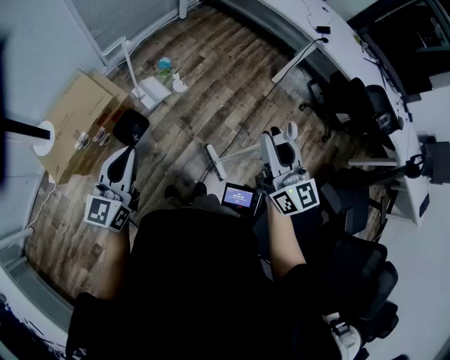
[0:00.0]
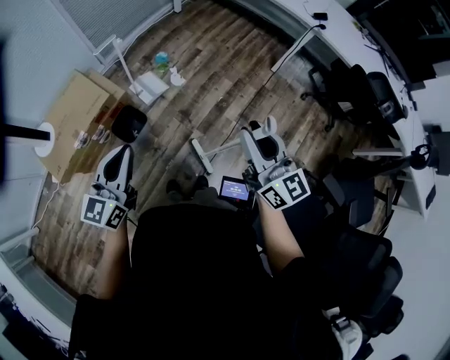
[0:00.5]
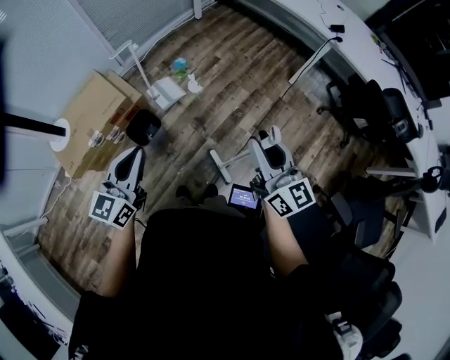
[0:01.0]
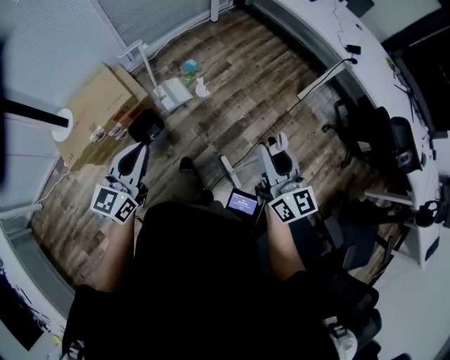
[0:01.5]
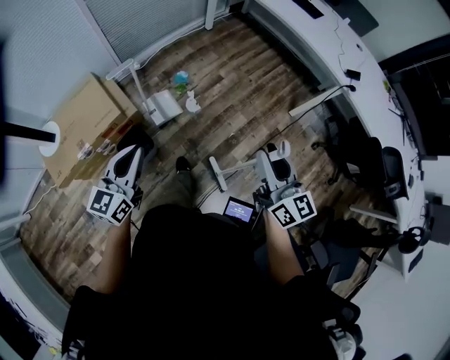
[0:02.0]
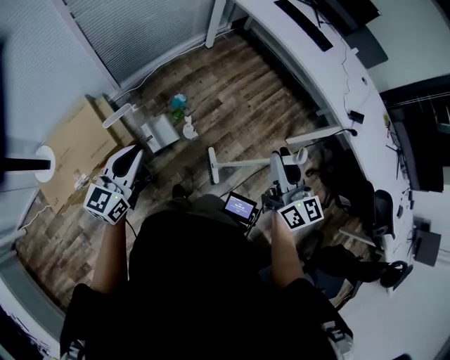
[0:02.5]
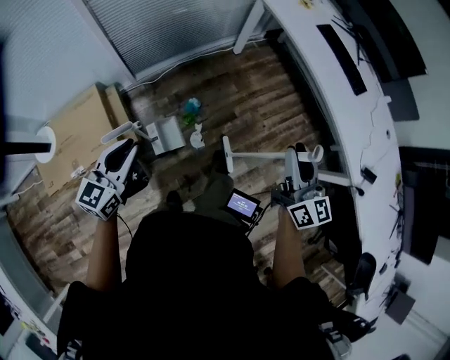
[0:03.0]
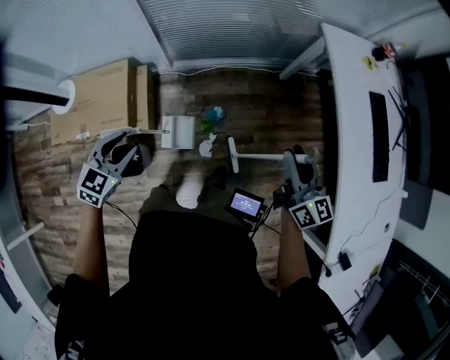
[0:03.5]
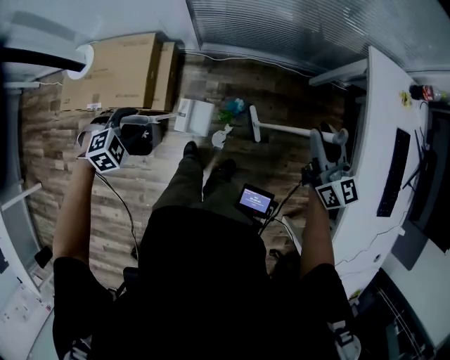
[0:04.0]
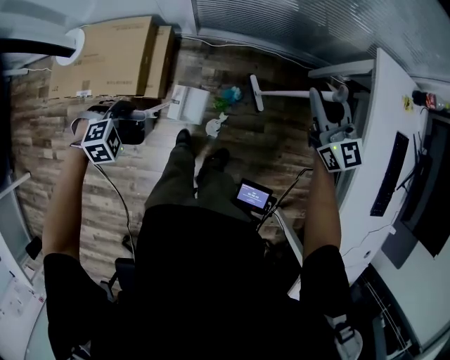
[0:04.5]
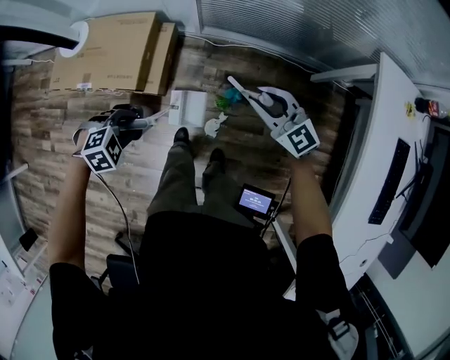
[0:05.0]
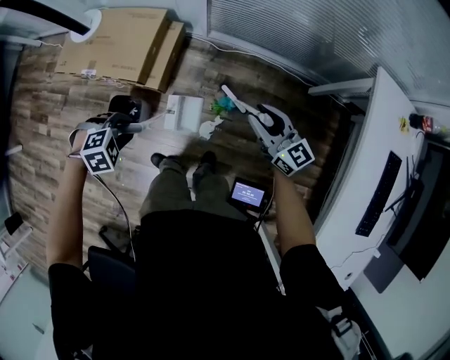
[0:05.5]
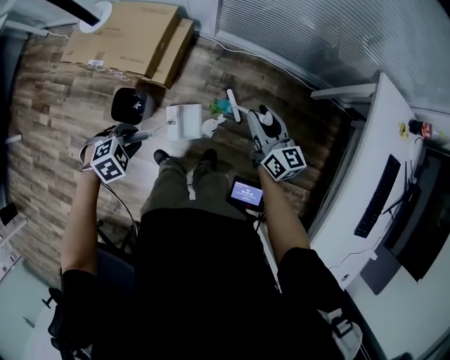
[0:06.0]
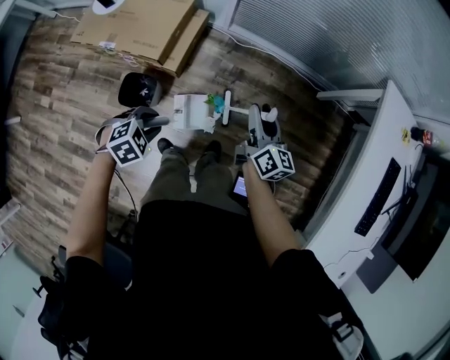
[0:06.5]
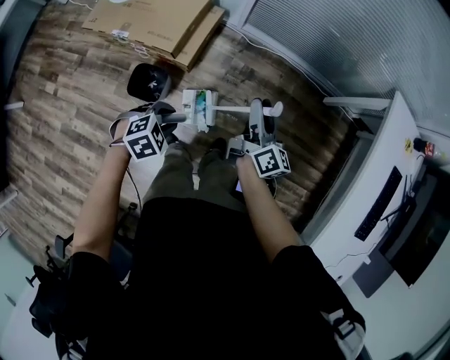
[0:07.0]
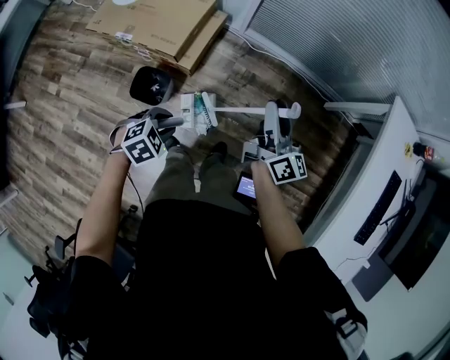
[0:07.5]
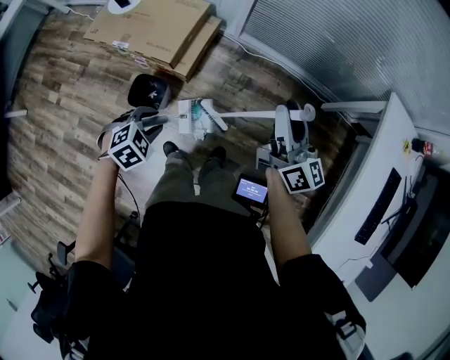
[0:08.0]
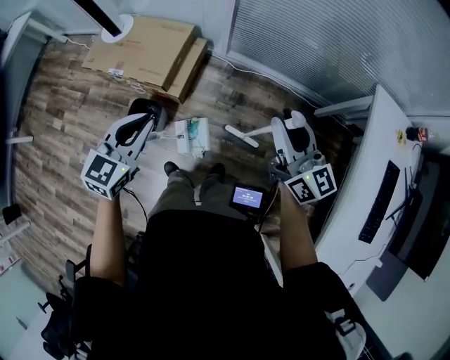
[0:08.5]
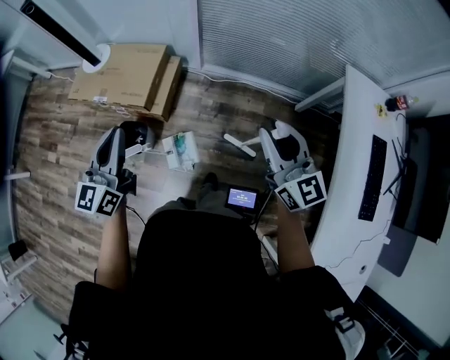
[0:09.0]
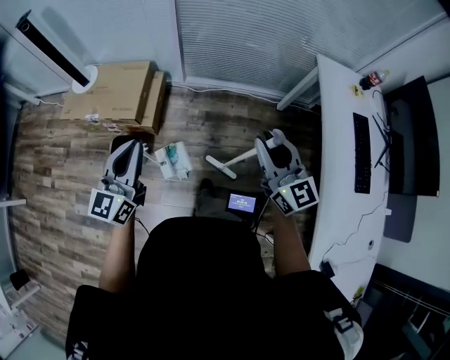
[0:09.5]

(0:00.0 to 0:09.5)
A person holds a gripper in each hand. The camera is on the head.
0:00.0 - 0:02.0: The two grippers go some 20 cm forward.
0:02.0 - 0:04.0: Both grippers are carried roughly 60 cm. The right gripper rotates about 50 degrees. Meanwhile the left gripper tips its fingers downward by some 60 degrees, and opens.
0:04.0 - 0:05.5: The left gripper changes place by about 10 cm, and closes its fingers. The right gripper shifts roughly 15 cm downward, and changes its angle by roughly 30 degrees.
0:05.5 - 0:07.5: The left gripper ends up some 10 cm from where it was, and rotates about 30 degrees, while the right gripper changes place by some 15 cm, and turns by approximately 40 degrees.
0:07.5 - 0:09.5: The right gripper shifts approximately 25 cm backward, upward and to the right, and twists some 40 degrees counterclockwise, seen from behind. The left gripper travels upward by some 30 cm, tips its fingers upward by some 70 degrees, and closes its fingers.

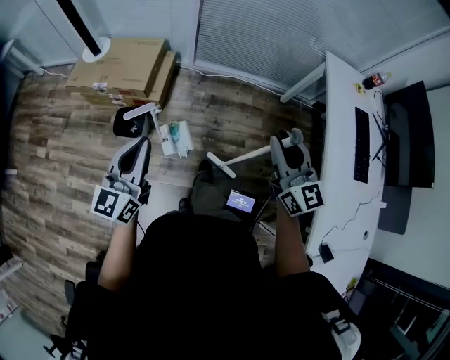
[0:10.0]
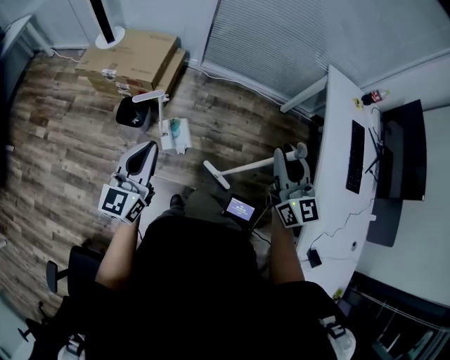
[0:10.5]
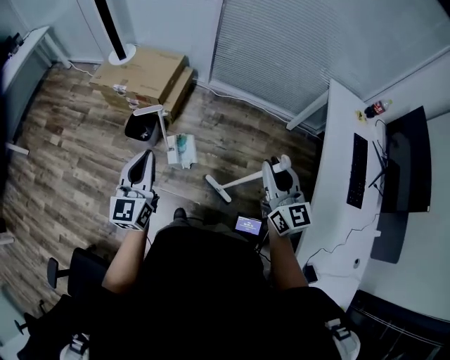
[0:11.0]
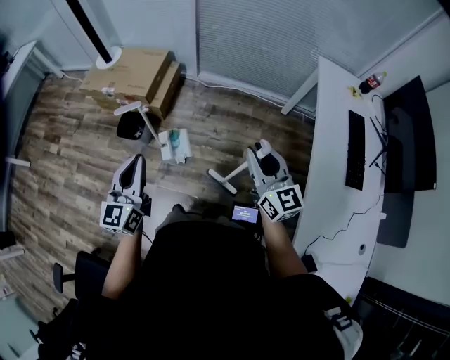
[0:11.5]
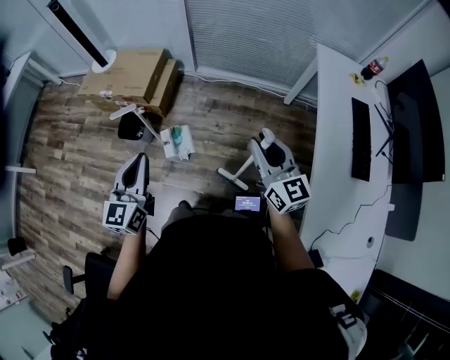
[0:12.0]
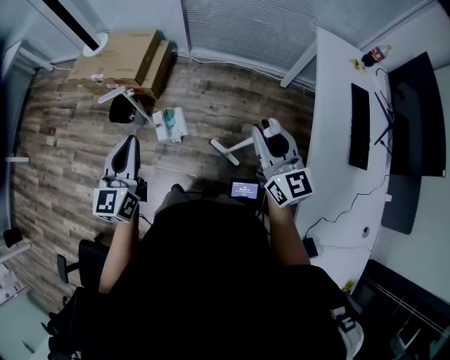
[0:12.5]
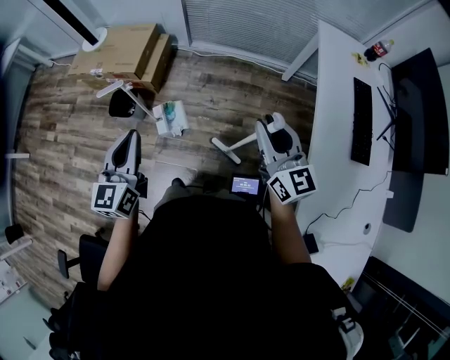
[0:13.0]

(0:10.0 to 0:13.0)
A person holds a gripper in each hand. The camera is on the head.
0:10.0 - 0:11.5: The right gripper travels to the right and backward by about 10 cm; the left gripper heads backward and to the right, covering about 15 cm.
0:11.5 - 0:13.0: Both grippers travel together to the right, about 5 cm.

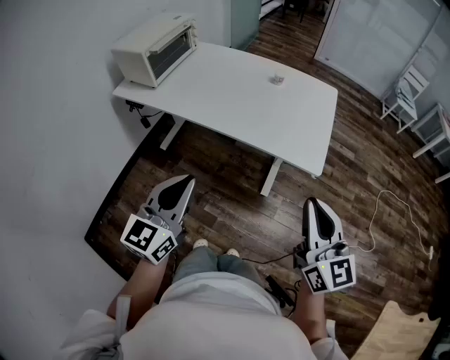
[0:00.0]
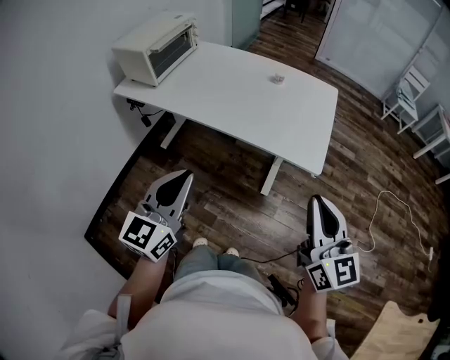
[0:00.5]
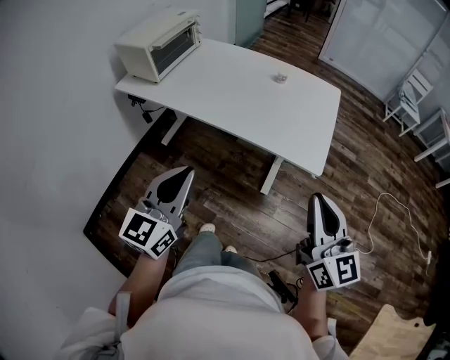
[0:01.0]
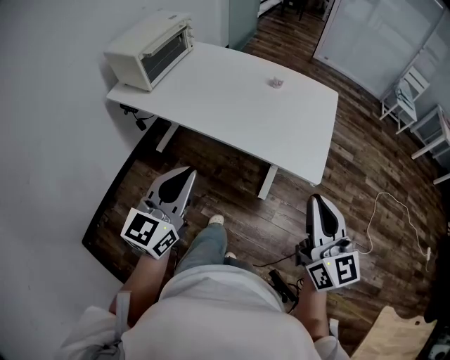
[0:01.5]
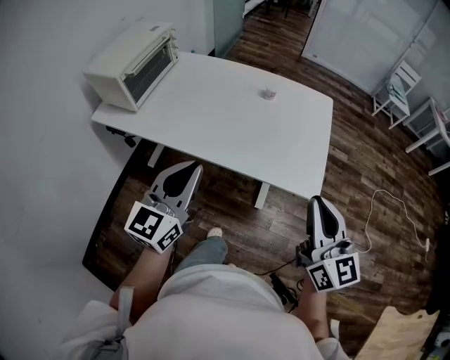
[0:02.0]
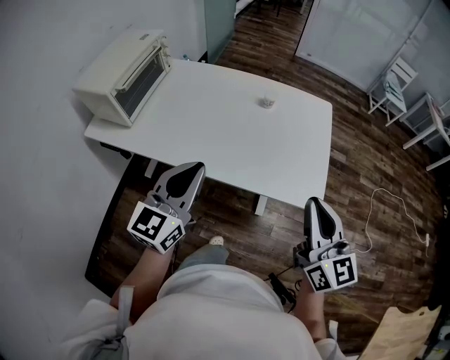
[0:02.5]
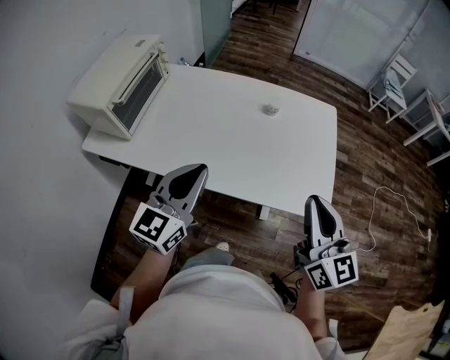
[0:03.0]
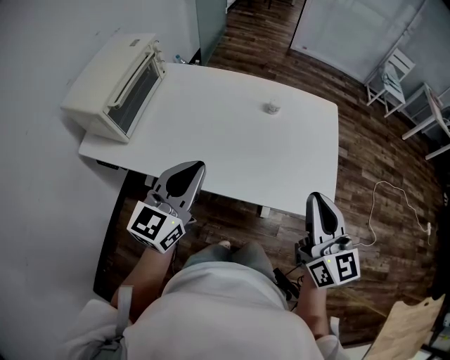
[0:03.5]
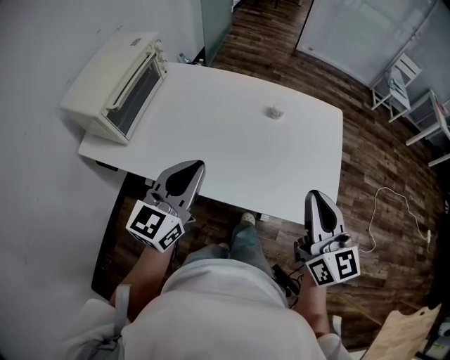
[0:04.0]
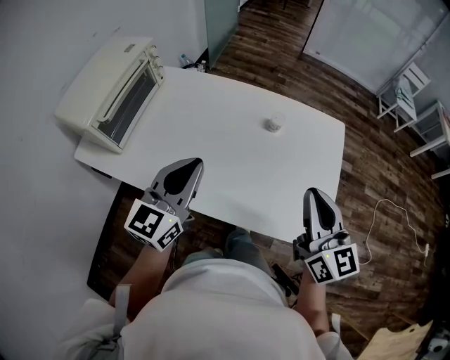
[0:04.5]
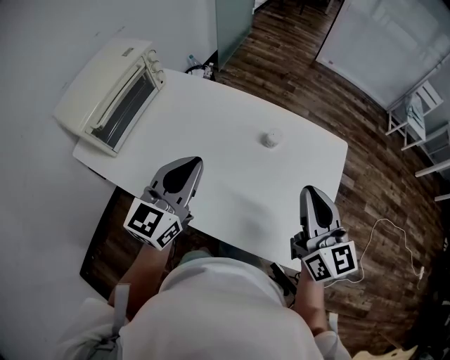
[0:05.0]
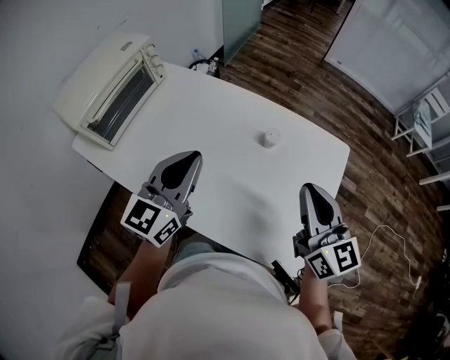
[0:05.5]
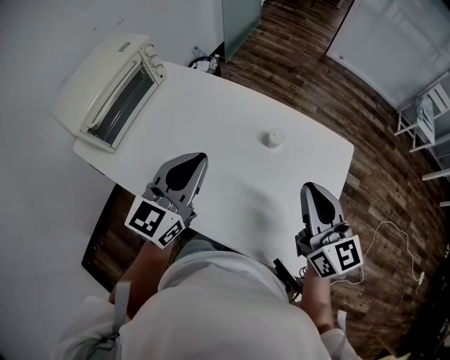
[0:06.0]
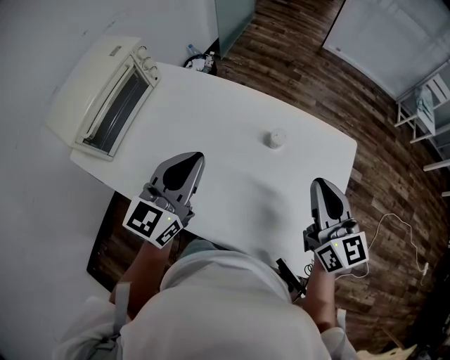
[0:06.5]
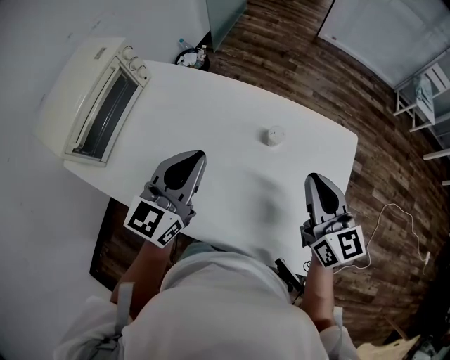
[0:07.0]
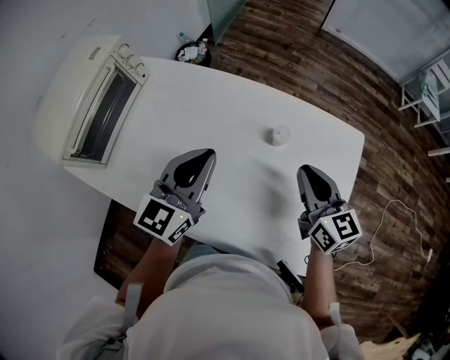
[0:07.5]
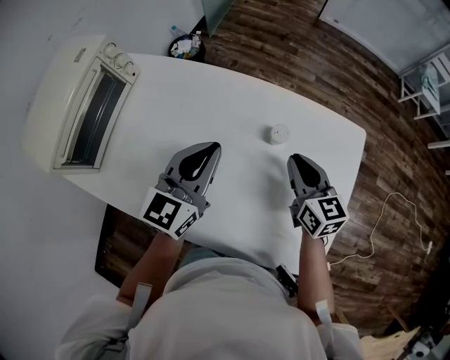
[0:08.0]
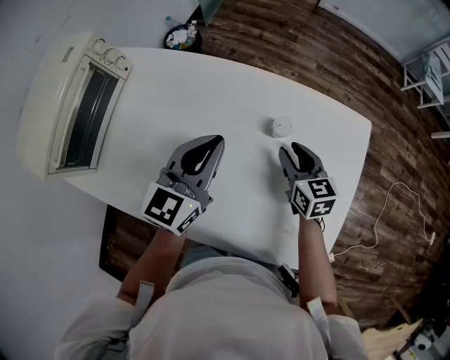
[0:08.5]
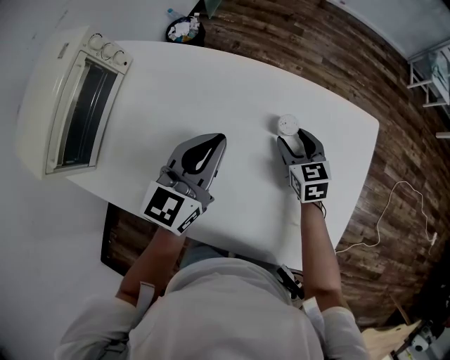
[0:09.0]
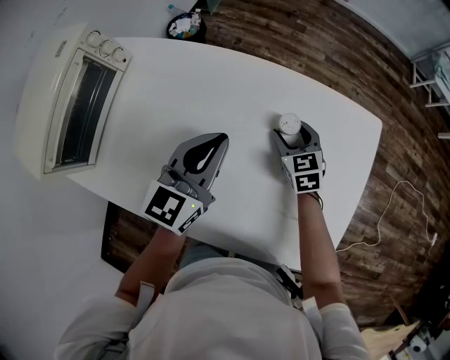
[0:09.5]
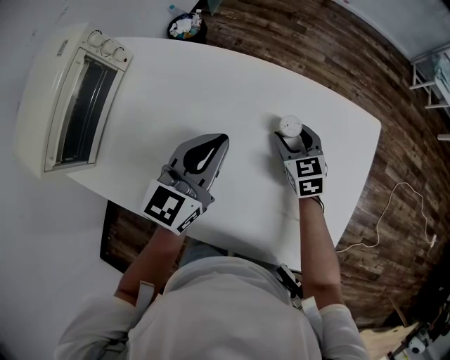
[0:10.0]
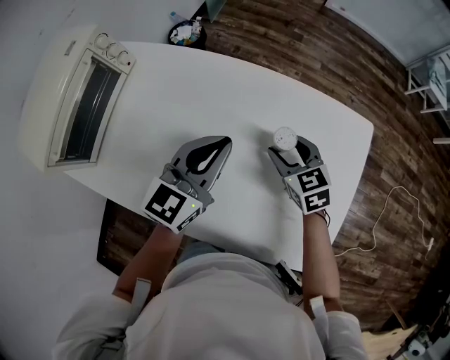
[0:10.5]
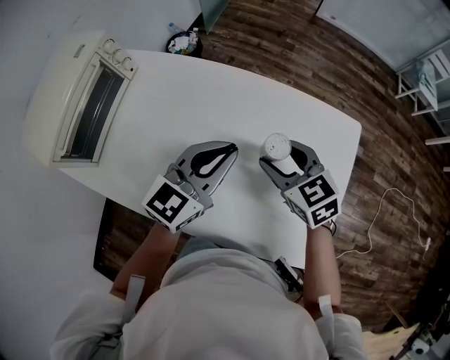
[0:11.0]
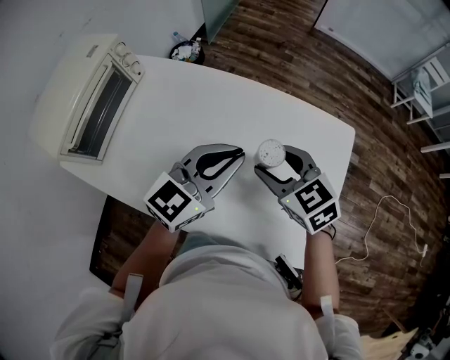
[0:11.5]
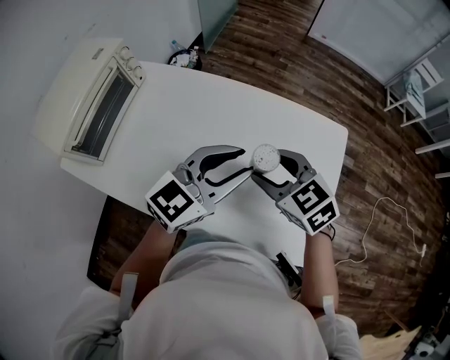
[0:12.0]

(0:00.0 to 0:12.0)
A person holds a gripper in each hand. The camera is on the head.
0:00.0 - 0:02.0: Both grippers move forward, roughly 15 cm.
0:02.0 - 0:04.0: The right gripper heads forward and to the left, covering approximately 20 cm; the left gripper is displaced forward by some 15 cm.
0:04.0 - 0:06.0: The right gripper moves forward, some 20 cm. Meanwhile the left gripper is displaced forward and to the right by approximately 20 cm.
0:06.0 - 0:08.0: The right gripper moves downward and forward, roughly 20 cm, while the left gripper shifts some 15 cm forward and downward.
0:08.0 - 0:10.0: The right gripper is displaced downward and forward by some 15 cm, rotates about 20 degrees, and opens.
0:10.0 - 0:12.0: The left gripper is displaced upward, backward and to the right by about 15 cm, swivels approximately 20 degrees, and opens up; the right gripper is displaced upward and backward by some 25 cm, and changes its angle by approximately 20 degrees.

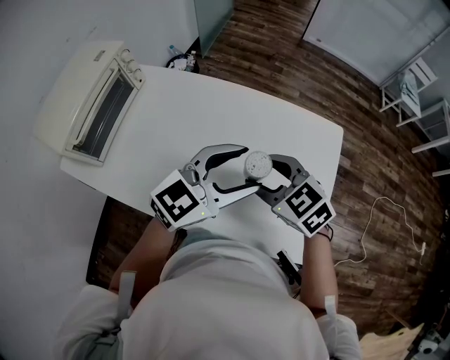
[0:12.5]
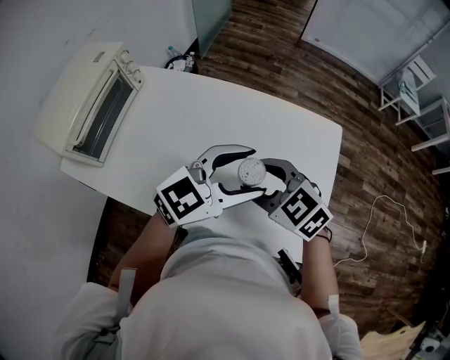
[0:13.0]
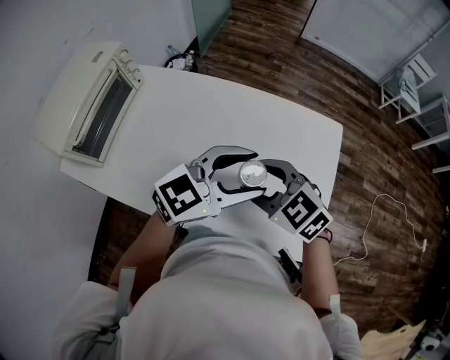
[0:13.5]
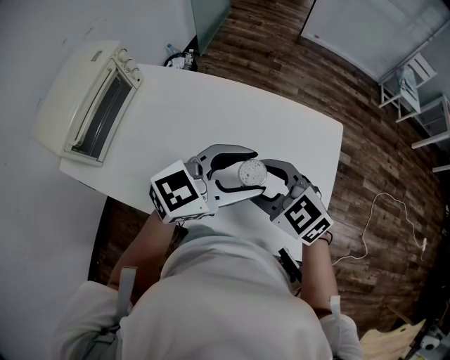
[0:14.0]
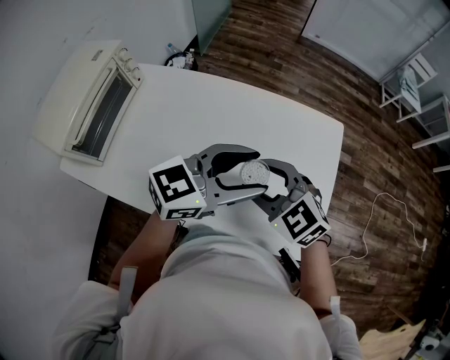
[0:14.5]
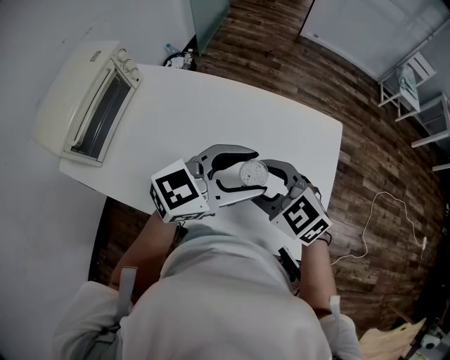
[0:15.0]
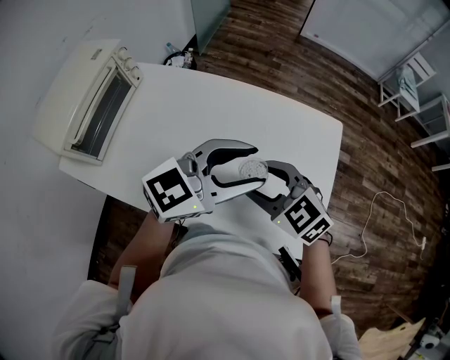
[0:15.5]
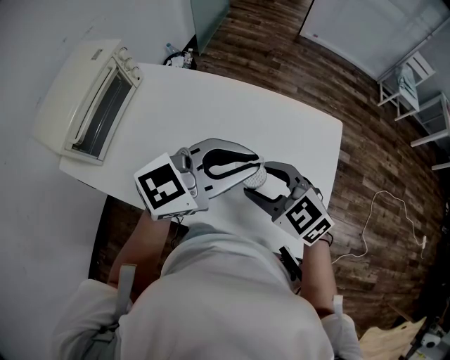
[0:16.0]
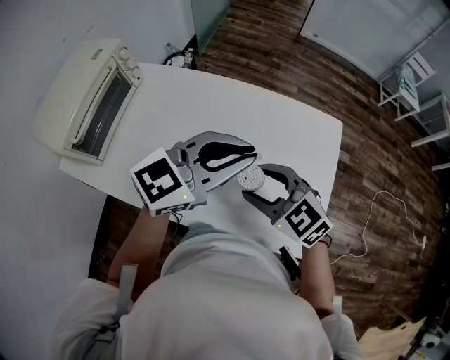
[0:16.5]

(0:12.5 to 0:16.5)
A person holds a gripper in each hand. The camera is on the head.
0:12.5 - 0:14.5: There are only small adjustments of the grippers.
0:14.5 - 0:16.5: The left gripper closes.
